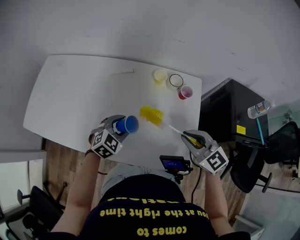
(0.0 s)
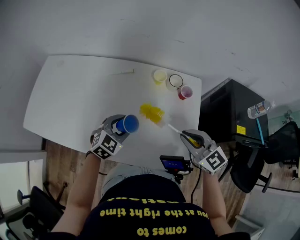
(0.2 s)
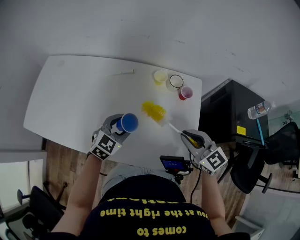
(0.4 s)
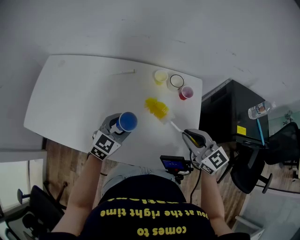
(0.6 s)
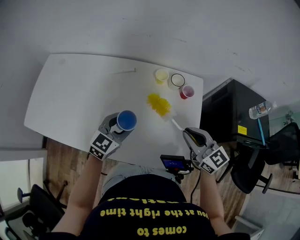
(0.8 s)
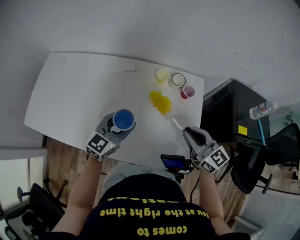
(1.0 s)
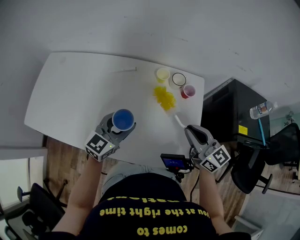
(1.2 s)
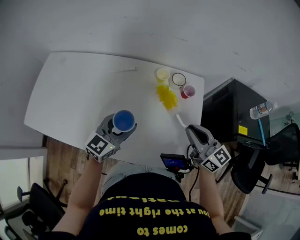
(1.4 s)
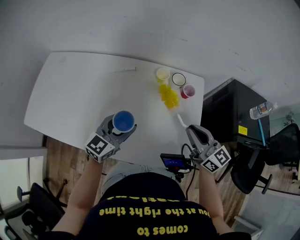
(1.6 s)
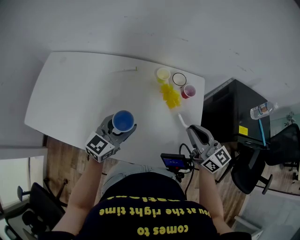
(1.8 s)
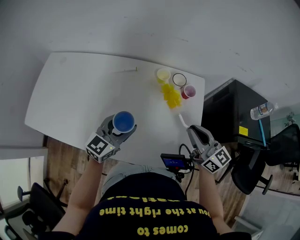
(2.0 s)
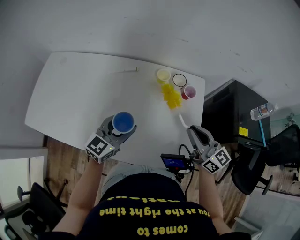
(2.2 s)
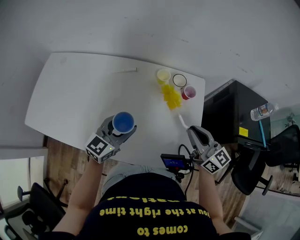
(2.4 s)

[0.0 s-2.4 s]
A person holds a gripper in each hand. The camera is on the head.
0.0 to 1.2 s: The left gripper goes about 10 cm upward, and changes its angle by about 40 degrees; the right gripper turns by roughly 30 degrees.
1.2 to 2.4 s: The grippers move only a little.

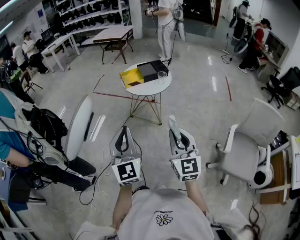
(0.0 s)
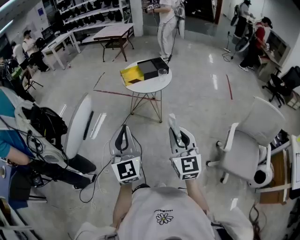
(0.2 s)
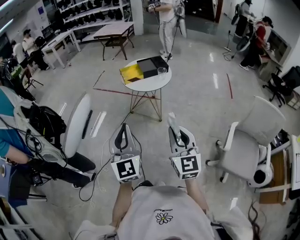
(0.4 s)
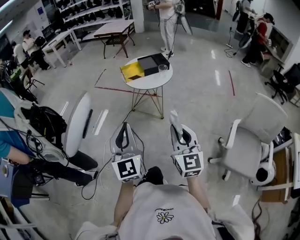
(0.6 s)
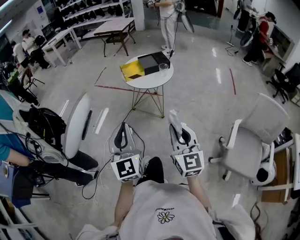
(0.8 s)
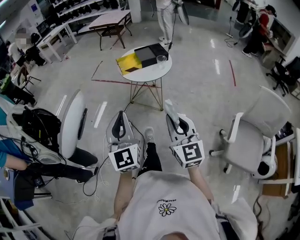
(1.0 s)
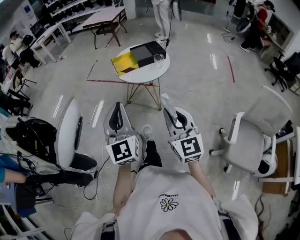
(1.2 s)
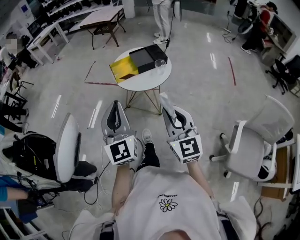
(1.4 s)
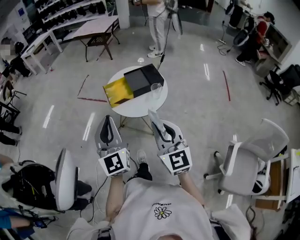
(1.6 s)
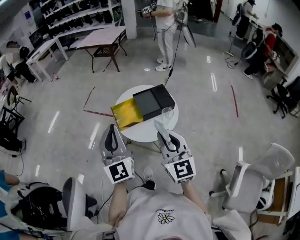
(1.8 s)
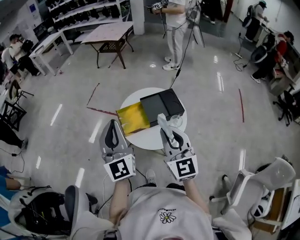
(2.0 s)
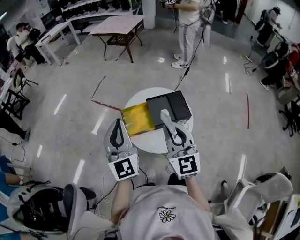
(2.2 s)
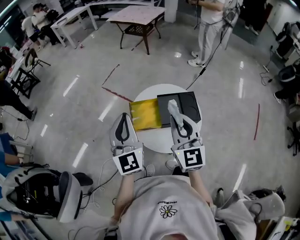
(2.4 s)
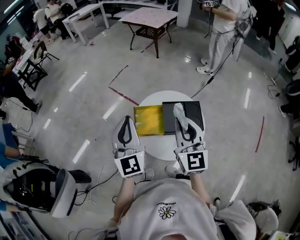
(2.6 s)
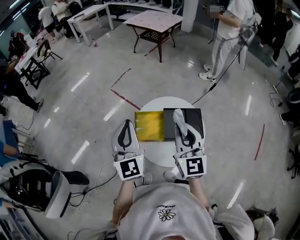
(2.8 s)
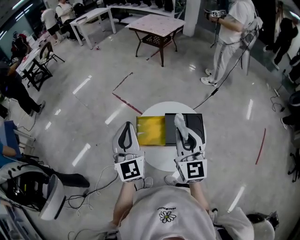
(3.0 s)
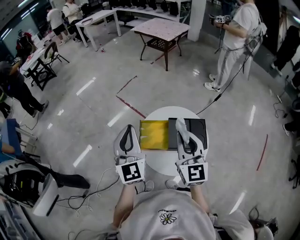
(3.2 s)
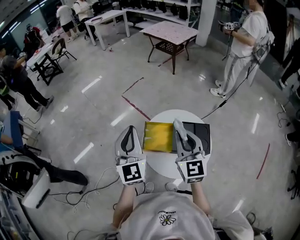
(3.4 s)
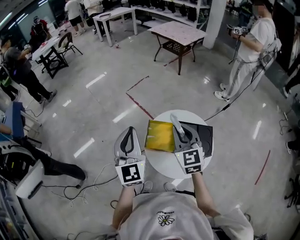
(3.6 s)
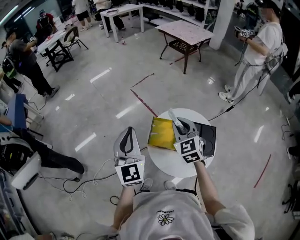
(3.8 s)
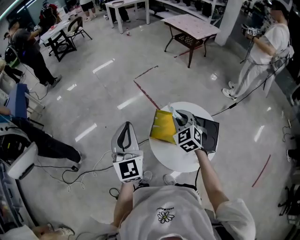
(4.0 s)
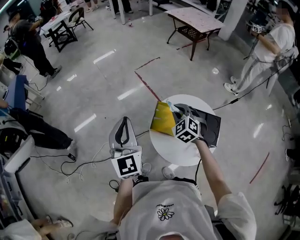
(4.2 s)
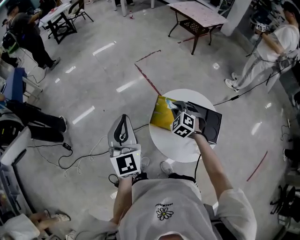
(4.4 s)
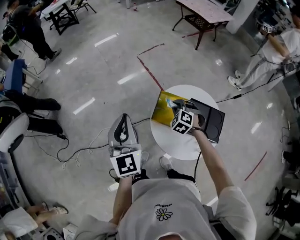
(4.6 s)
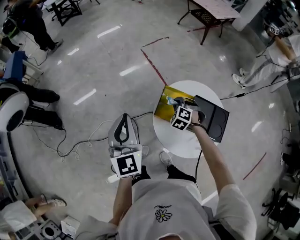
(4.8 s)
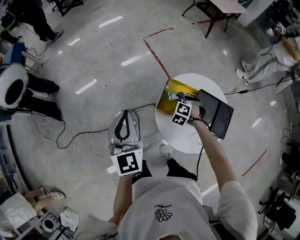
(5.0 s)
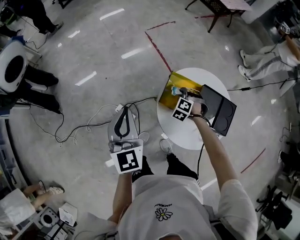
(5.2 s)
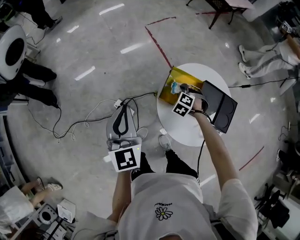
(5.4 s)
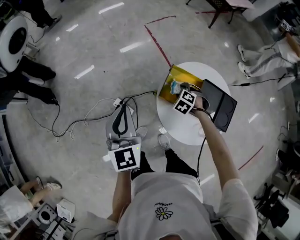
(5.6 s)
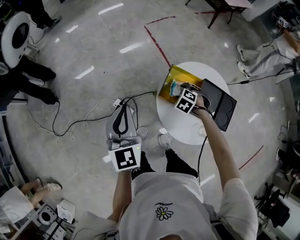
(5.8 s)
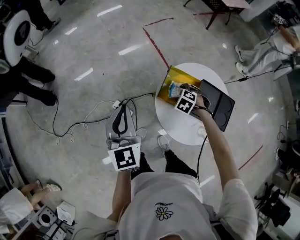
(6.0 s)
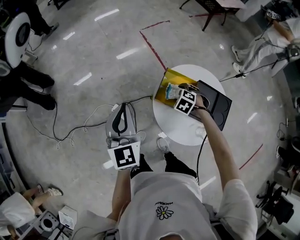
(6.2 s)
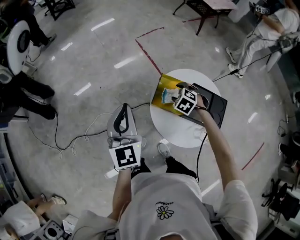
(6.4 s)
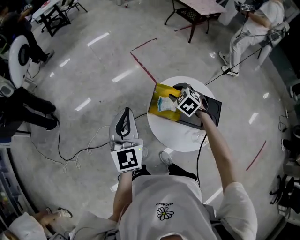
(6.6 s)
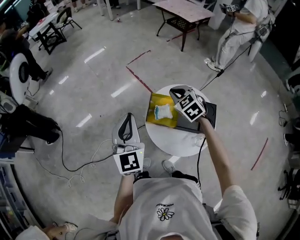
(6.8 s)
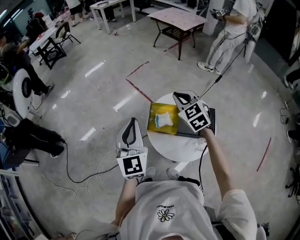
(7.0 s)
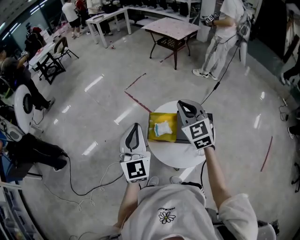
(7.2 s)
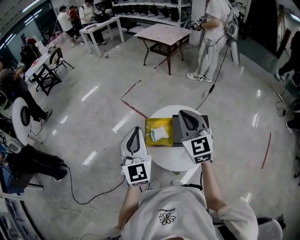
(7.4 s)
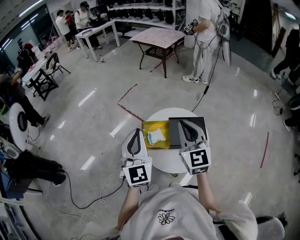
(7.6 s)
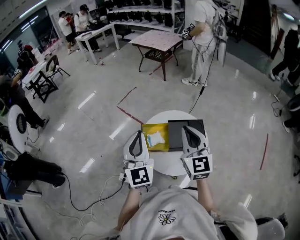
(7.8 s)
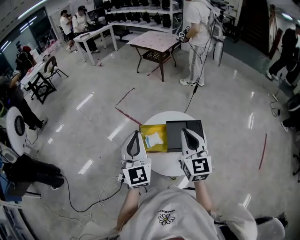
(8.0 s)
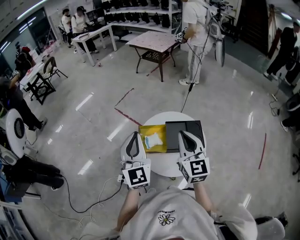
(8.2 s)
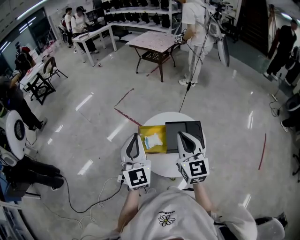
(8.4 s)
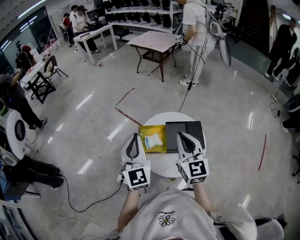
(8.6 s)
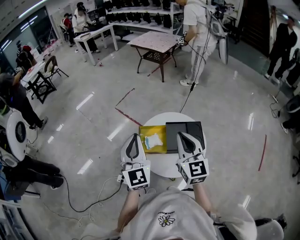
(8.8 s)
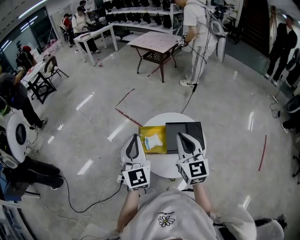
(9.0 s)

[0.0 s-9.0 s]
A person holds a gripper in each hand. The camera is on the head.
0.0 to 1.6 s: The two grippers go roughly 30 cm forward.
1.6 to 3.0 s: The grippers both shift forward by about 30 cm.
3.0 to 4.4 s: The right gripper is displaced downward and forward by about 25 cm, and tilts its fingers some 50 degrees downward, while the left gripper moves to the left, some 10 cm.
4.4 to 6.0 s: The left gripper moves downward, some 10 cm; the right gripper travels downward by some 15 cm, tilts its fingers about 30 degrees downward, and opens.
6.0 to 7.6 s: The left gripper moves about 20 cm, and turns by approximately 30 degrees, while the right gripper travels upward by approximately 40 cm, tilts its fingers roughly 70 degrees upward, and closes up.
7.6 to 9.0 s: The grippers move only a little.

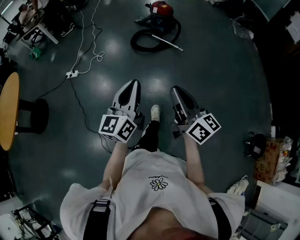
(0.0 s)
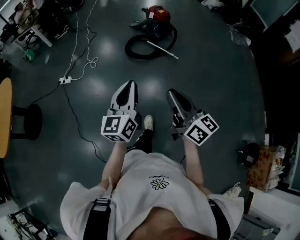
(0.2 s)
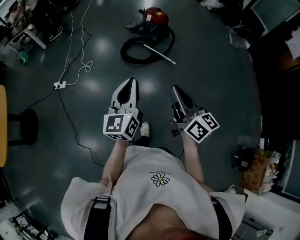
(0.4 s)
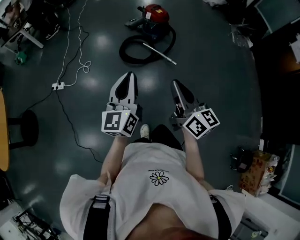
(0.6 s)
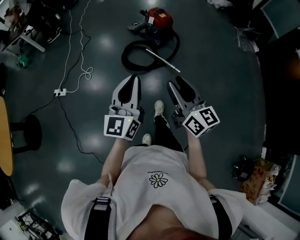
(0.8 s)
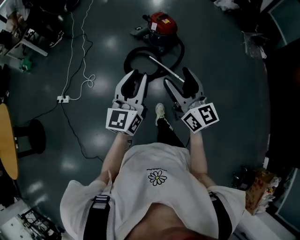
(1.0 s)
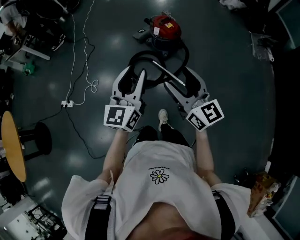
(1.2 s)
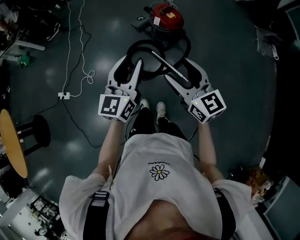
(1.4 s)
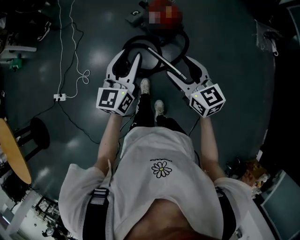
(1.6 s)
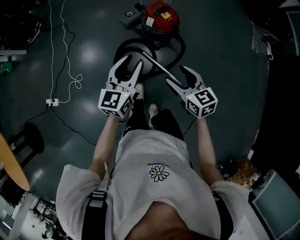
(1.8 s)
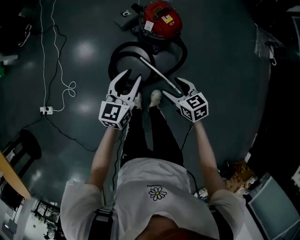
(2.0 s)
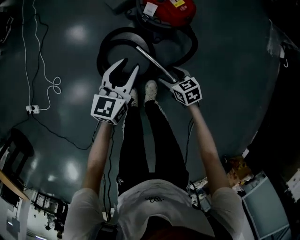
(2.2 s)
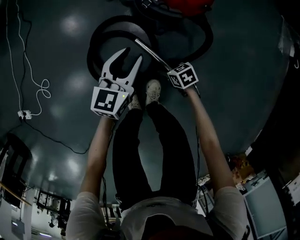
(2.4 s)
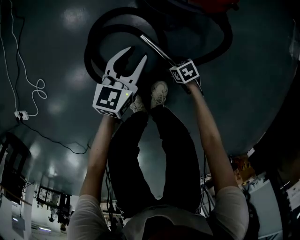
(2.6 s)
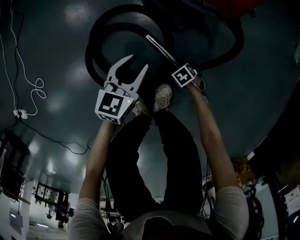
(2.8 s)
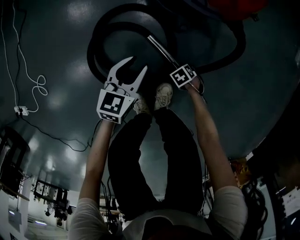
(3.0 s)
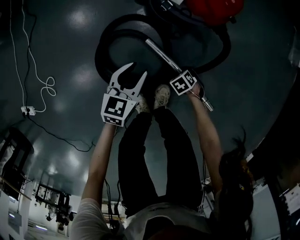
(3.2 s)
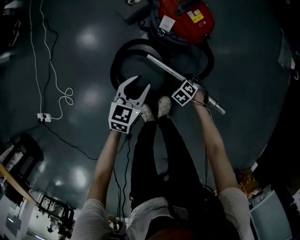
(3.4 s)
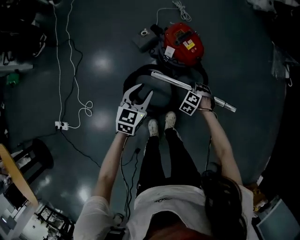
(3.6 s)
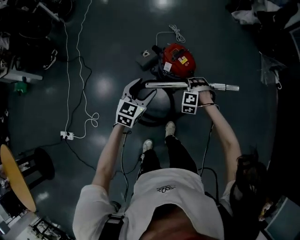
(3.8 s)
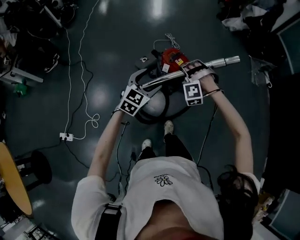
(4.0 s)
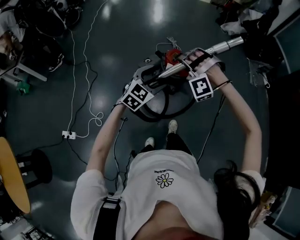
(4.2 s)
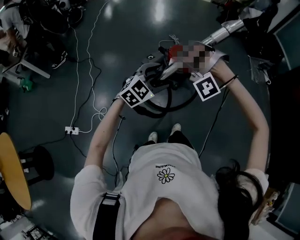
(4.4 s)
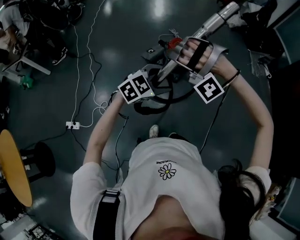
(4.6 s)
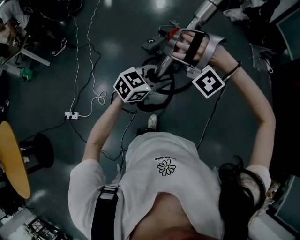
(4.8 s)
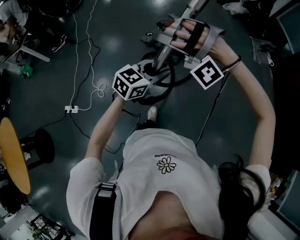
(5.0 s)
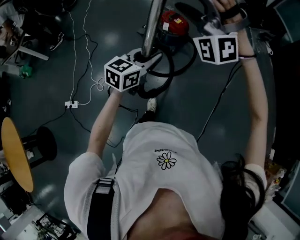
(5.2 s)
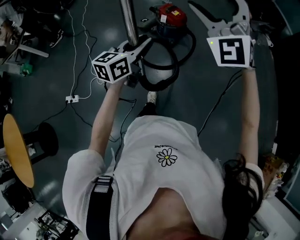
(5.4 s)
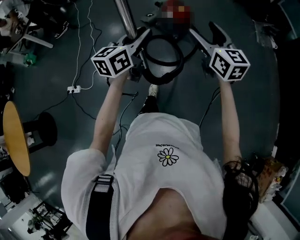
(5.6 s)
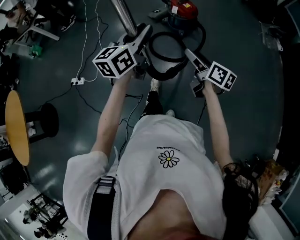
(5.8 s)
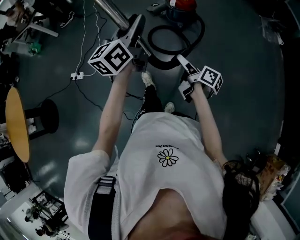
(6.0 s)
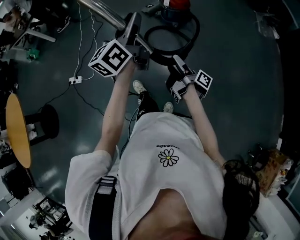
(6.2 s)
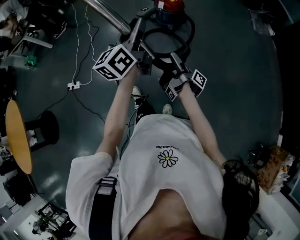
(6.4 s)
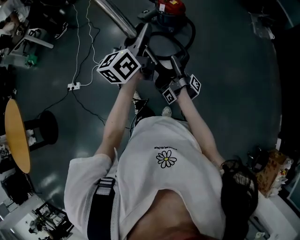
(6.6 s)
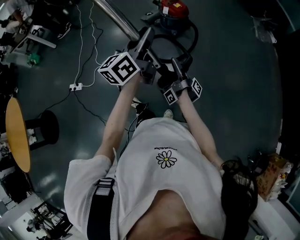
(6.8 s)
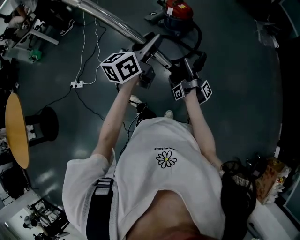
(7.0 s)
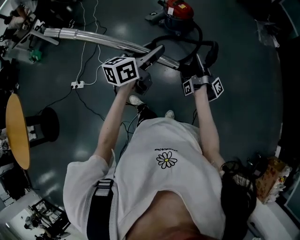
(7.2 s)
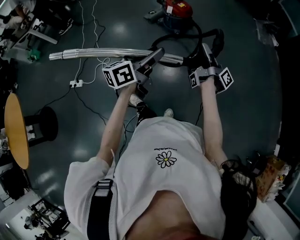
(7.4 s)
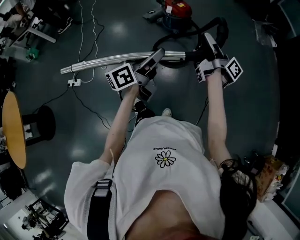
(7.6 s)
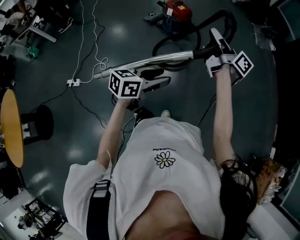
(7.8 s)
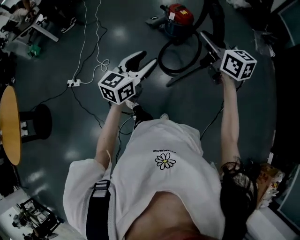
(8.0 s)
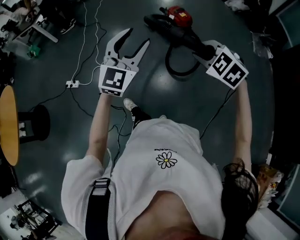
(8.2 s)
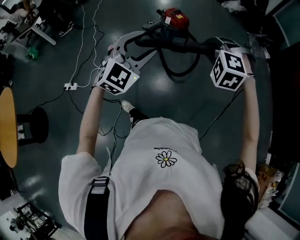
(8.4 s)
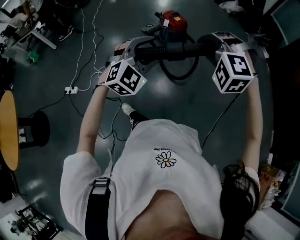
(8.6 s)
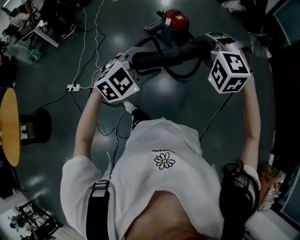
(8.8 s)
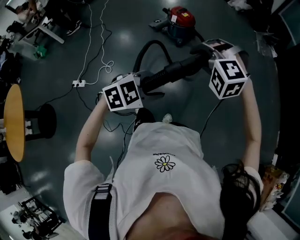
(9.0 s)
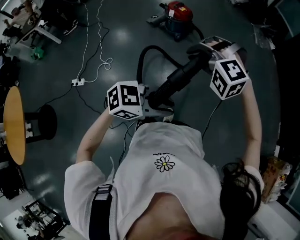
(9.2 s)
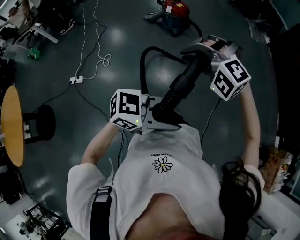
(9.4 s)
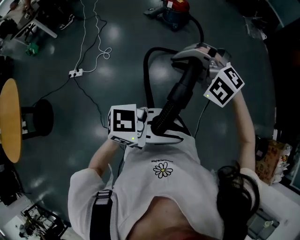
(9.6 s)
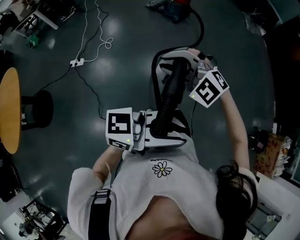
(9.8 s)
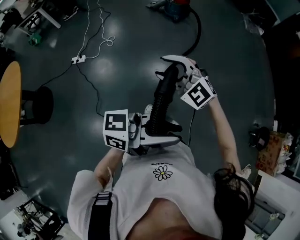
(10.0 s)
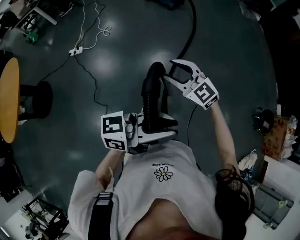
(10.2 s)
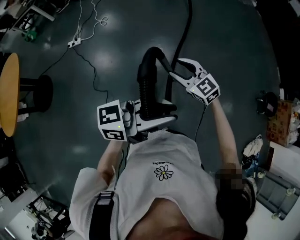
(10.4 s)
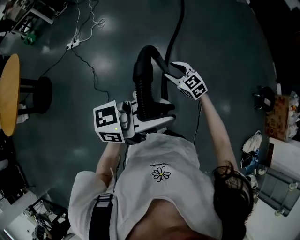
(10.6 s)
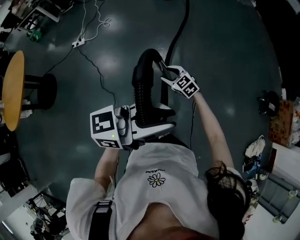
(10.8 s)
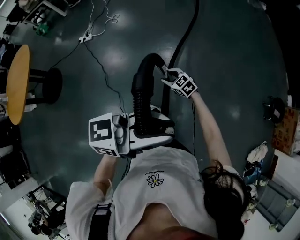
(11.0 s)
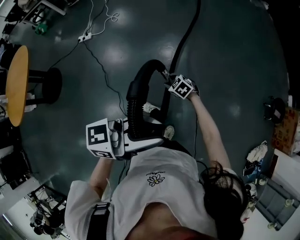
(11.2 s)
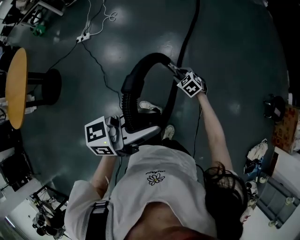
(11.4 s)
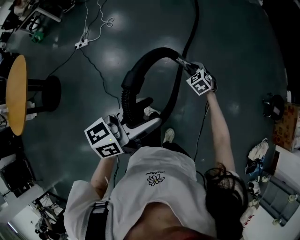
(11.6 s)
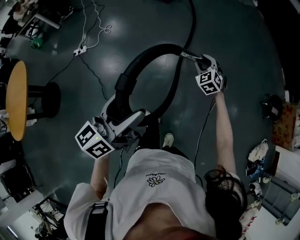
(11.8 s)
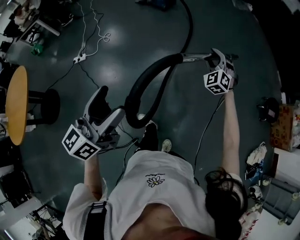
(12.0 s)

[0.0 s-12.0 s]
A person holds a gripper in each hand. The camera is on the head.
0.0 to 1.6 s: Both grippers are carried forward, some 90 cm. The right gripper turns by about 40 degrees, and opens.
1.6 to 3.0 s: The two grippers go some 80 cm downward. The right gripper angles its fingers downward, by roughly 60 degrees, and closes; the left gripper turns by some 30 degrees.
3.0 to 4.4 s: The grippers both shift upward by some 90 cm. The right gripper angles its fingers upward, by roughly 50 degrees; the left gripper rolls clockwise, seen from behind, by some 50 degrees.
4.4 to 6.0 s: The left gripper shifts by some 30 cm, changes its angle by roughly 70 degrees, and closes, while the right gripper ends up about 50 cm from where it was, rolls counterclockwise, seen from behind, by some 160 degrees, and opens its fingers.
6.0 to 7.6 s: The right gripper is displaced upward by approximately 15 cm, swivels roughly 30 degrees, and closes its fingers, while the left gripper ends up approximately 15 cm from where it was, and swivels approximately 30 degrees.
7.6 to 9.0 s: The left gripper swings up and down, roughly 15 cm each way, with 2 reversals, and tilts its fingers about 50 degrees downward; the right gripper swings up and down, about 10 cm each way, with 3 reversals, and tips its fingers downward by some 70 degrees.
9.0 to 10.4 s: The two grippers travel together, about 70 cm. The right gripper rolls clockwise, seen from behind, by roughly 60 degrees, and opens up; the left gripper tilts its fingers roughly 50 degrees upward.
10.4 to 12.0 s: The left gripper swings up and down, some 5 cm each way, with 2 reversals, rotates roughly 40 degrees, and opens its fingers. Meanwhile the right gripper goes downward and returns, some 20 cm each way, and rotates some 60 degrees.
